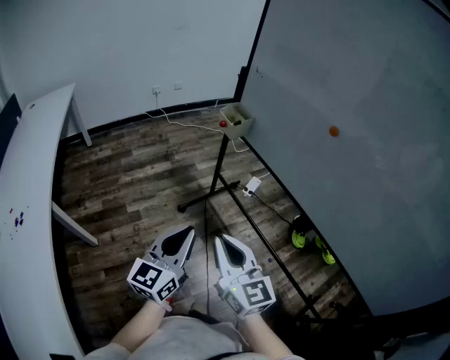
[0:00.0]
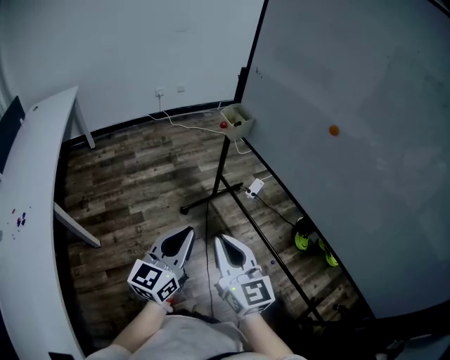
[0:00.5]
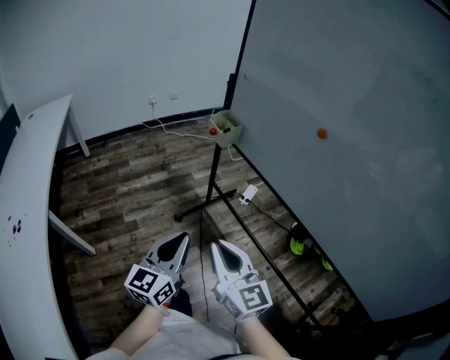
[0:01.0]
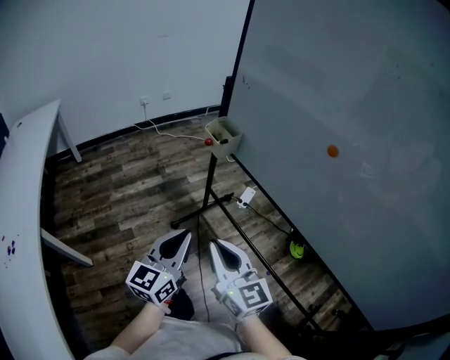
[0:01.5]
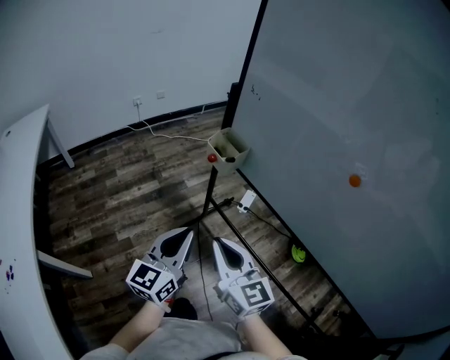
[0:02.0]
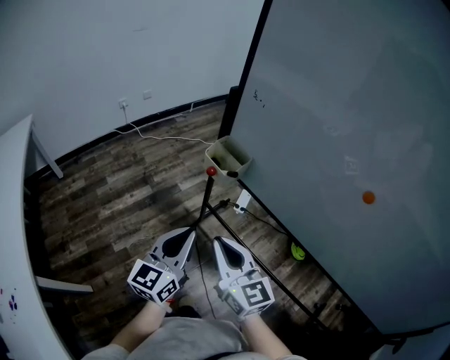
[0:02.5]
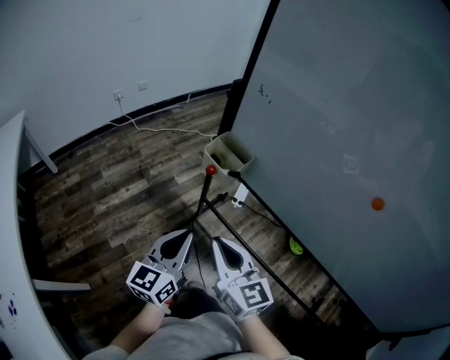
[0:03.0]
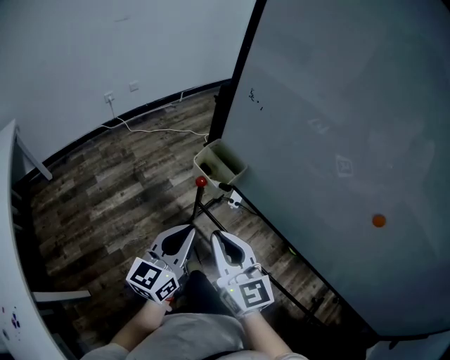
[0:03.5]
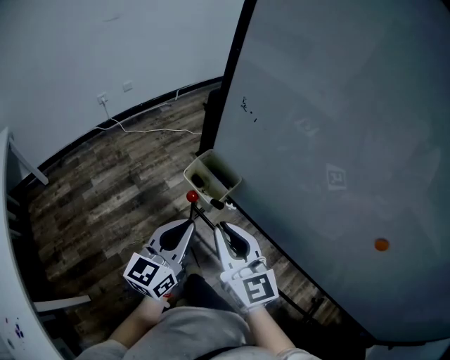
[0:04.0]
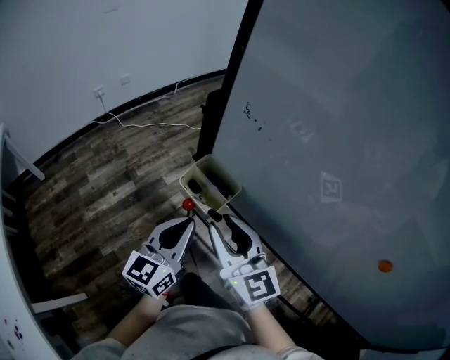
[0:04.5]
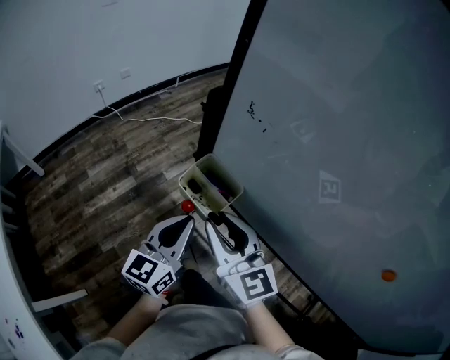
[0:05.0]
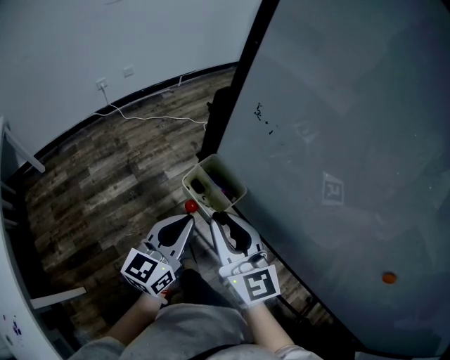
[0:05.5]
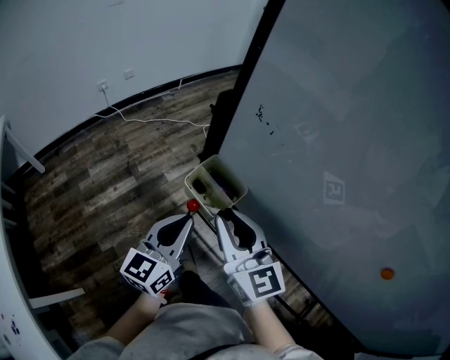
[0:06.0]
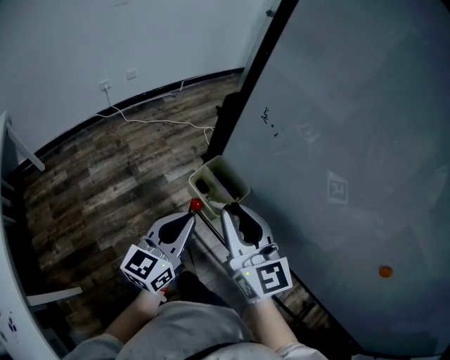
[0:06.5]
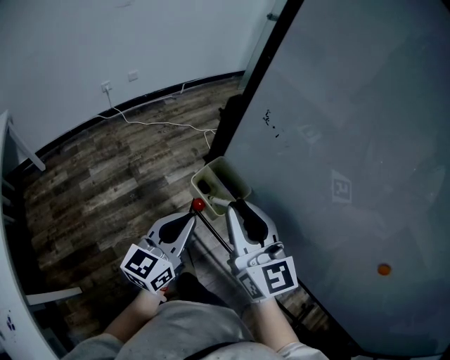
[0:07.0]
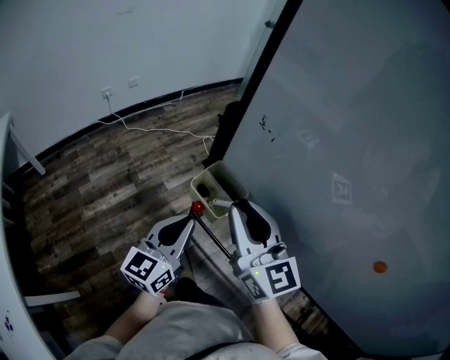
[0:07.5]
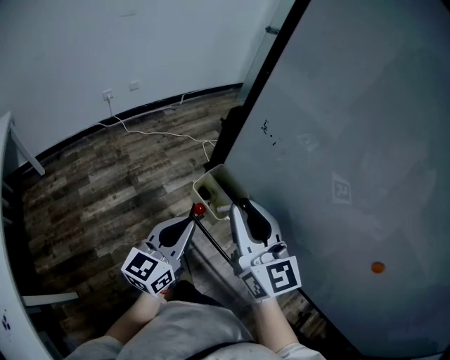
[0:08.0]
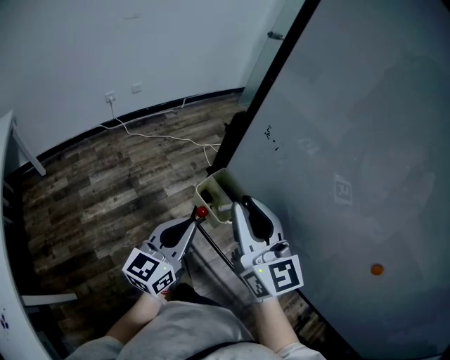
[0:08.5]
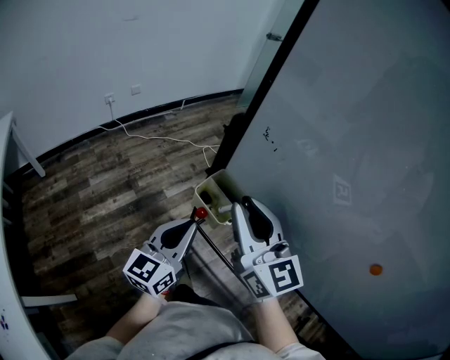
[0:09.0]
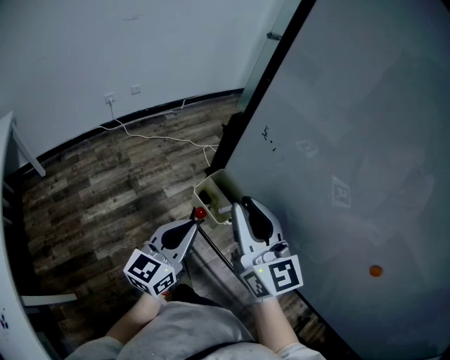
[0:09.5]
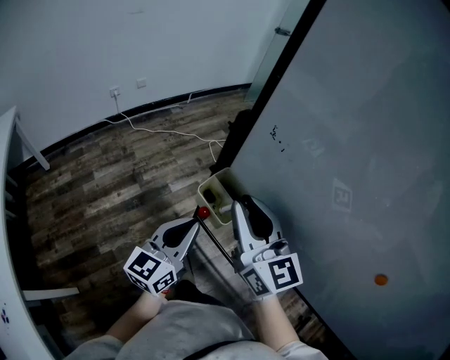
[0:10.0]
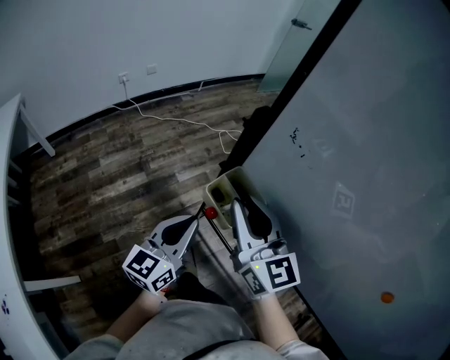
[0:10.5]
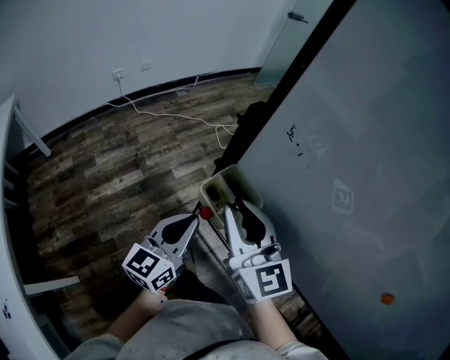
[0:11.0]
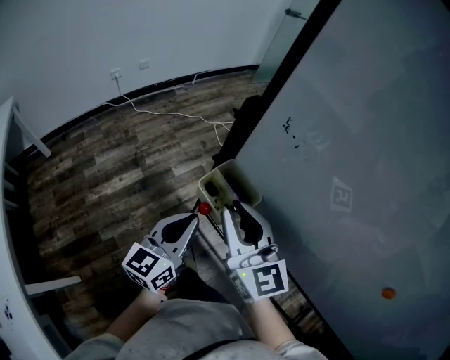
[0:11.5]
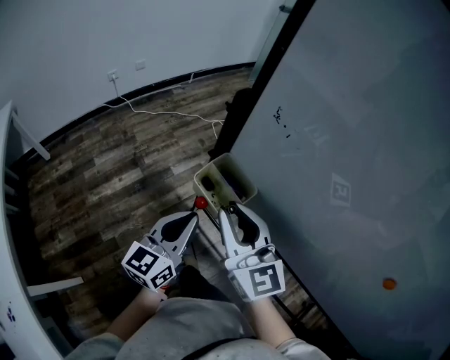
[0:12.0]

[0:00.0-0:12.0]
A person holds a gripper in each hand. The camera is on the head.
0:00.0 to 0:02.0: Both grippers move forward, some 20 cm.
0:02.0 to 0:04.0: Both grippers travel together forward, about 20 cm.
0:04.0 to 0:06.0: The right gripper shifts about 5 cm forward.
0:06.0 to 0:08.0: The right gripper moves upward, approximately 5 cm.
0:08.0 to 0:10.0: There are only small adjustments of the grippers.
0:10.0 to 0:12.0: The right gripper moves downward, some 5 cm.

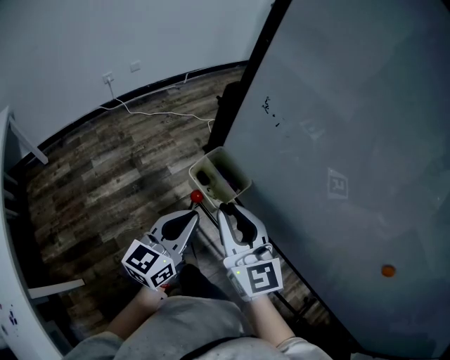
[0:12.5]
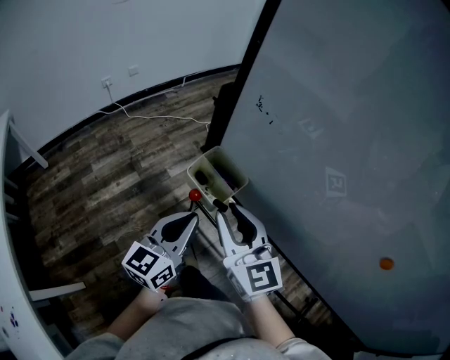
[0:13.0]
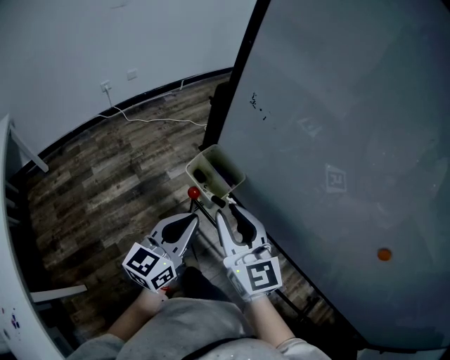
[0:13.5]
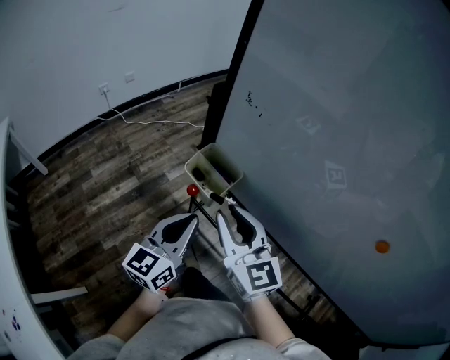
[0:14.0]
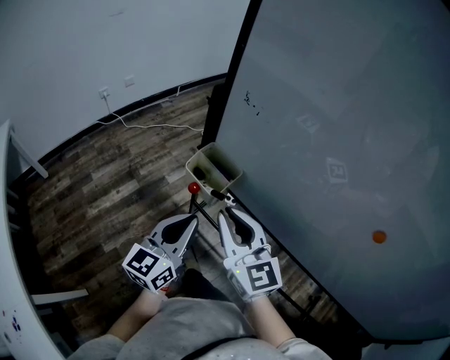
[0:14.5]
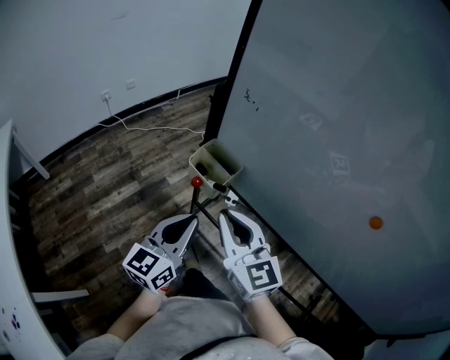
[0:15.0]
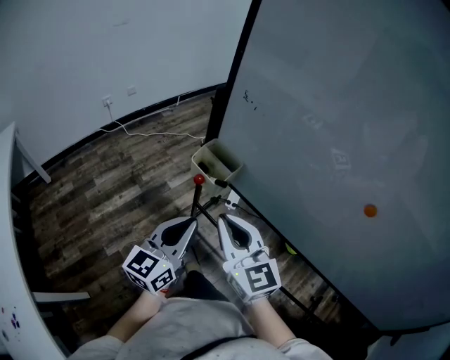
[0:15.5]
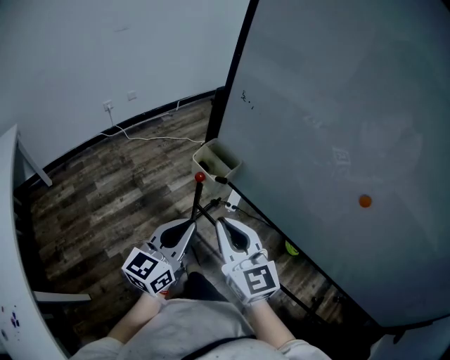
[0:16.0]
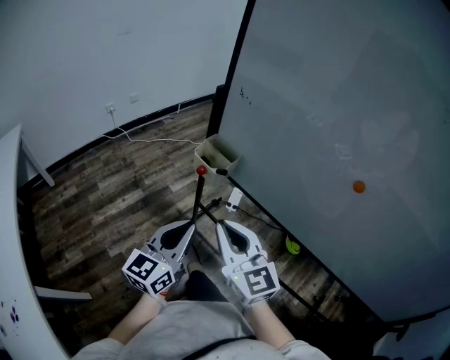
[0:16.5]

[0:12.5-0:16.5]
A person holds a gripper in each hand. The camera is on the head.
0:12.5 to 0:14.5: The right gripper moves roughly 5 cm. The left gripper shifts by roughly 5 cm.
0:14.5 to 0:16.5: Both grippers move backward, approximately 15 cm.

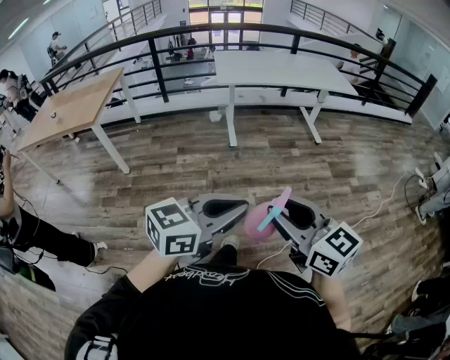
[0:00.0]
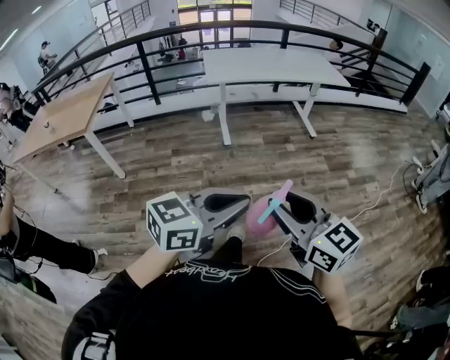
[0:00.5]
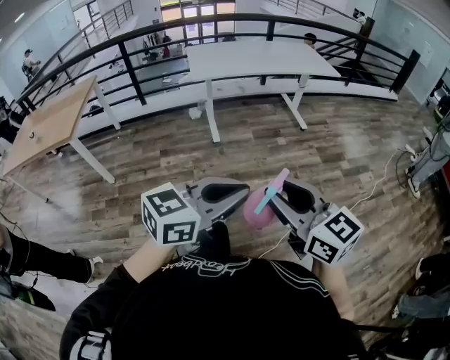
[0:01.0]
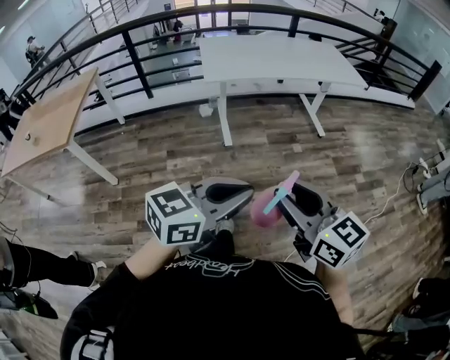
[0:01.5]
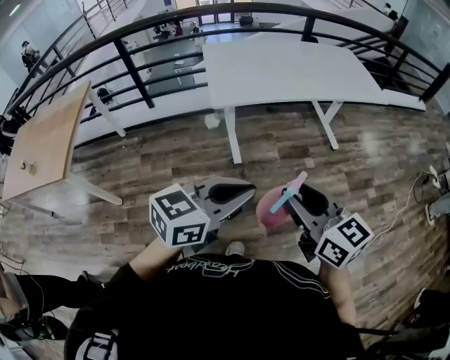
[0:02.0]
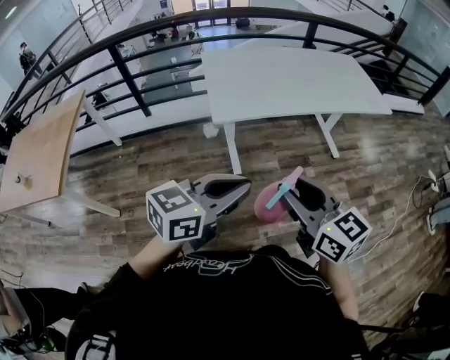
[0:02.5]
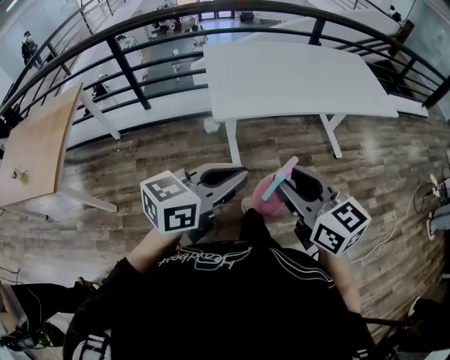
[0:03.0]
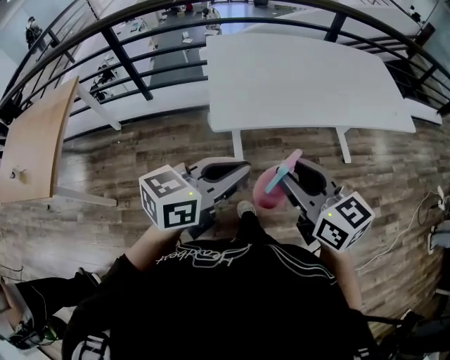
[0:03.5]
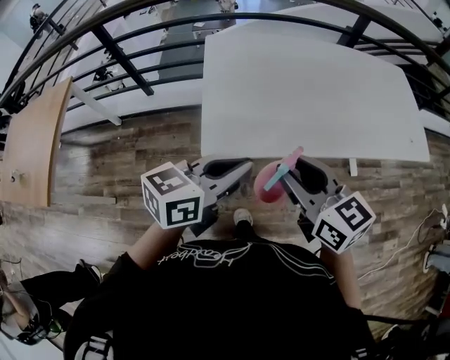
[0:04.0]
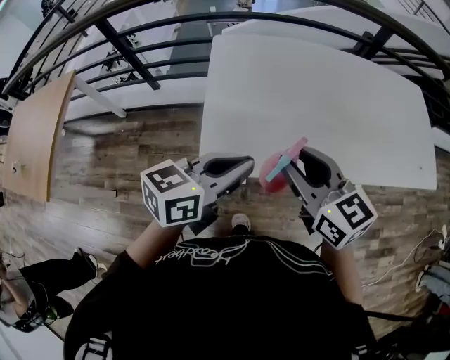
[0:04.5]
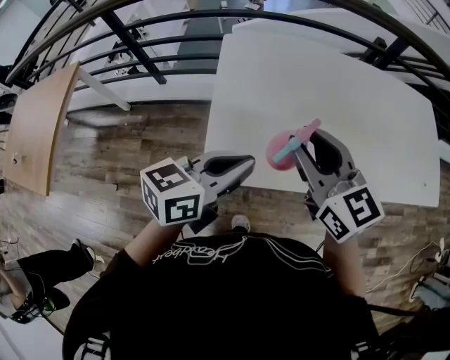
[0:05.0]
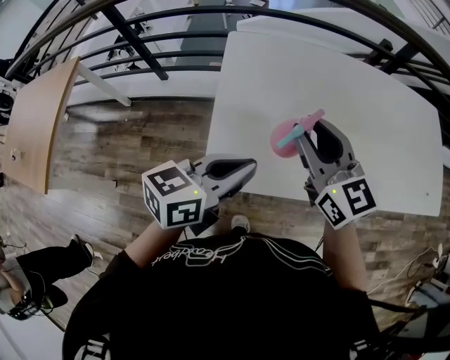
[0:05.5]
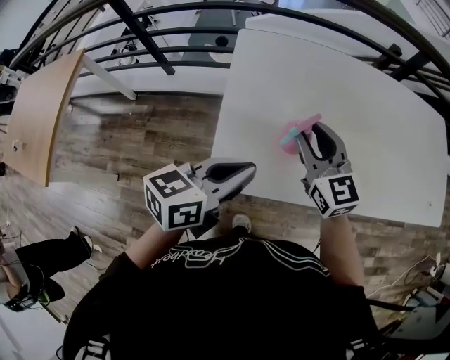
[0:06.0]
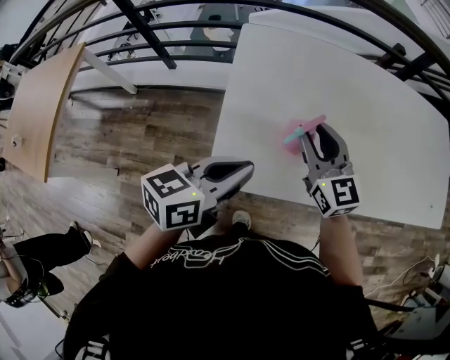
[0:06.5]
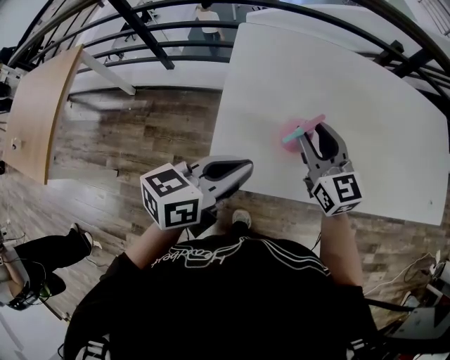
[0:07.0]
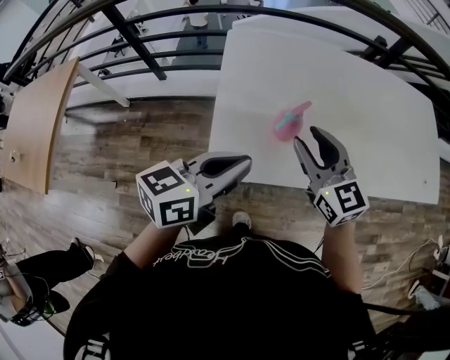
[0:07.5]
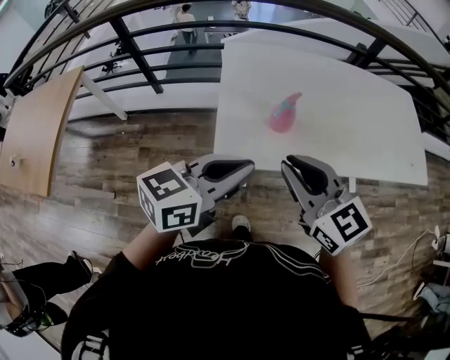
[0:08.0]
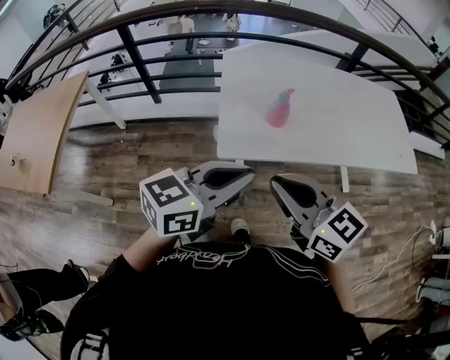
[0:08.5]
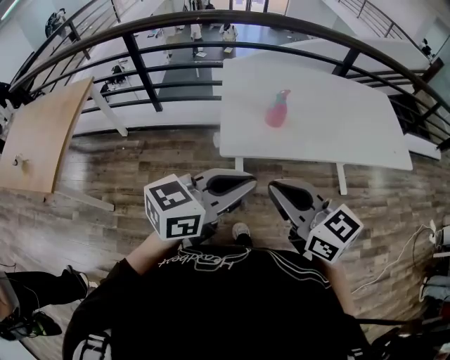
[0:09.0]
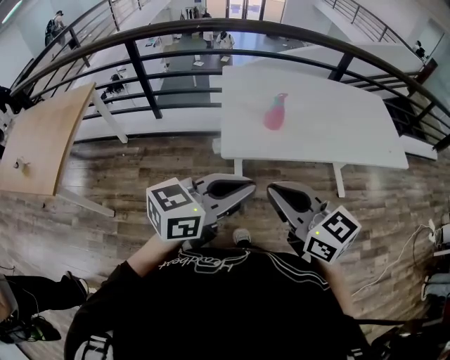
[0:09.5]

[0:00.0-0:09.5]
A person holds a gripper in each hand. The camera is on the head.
0:00.0 to 0:02.0: The two grippers travel together, forward, about 60 cm.
0:02.0 to 0:04.0: Both grippers are carried forward, some 50 cm.
0:04.0 to 0:05.5: The right gripper moves forward, roughly 20 cm. Meanwhile the left gripper shifts some 15 cm forward.
0:07.5 to 0:09.5: The right gripper moves backward, some 35 cm, and closes. The left gripper heads backward and upward, covering approximately 30 cm.

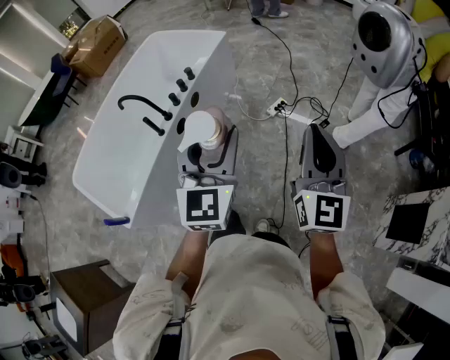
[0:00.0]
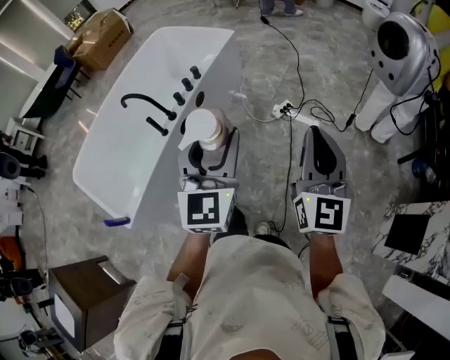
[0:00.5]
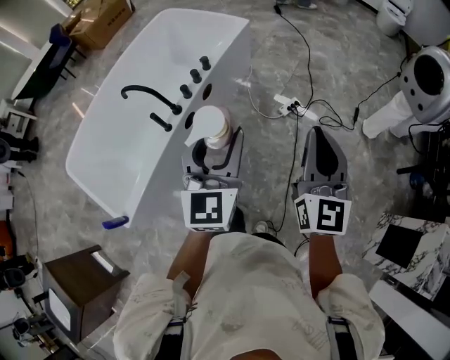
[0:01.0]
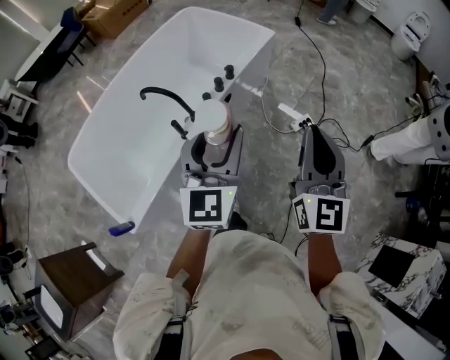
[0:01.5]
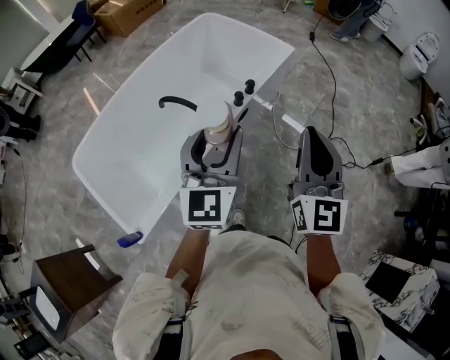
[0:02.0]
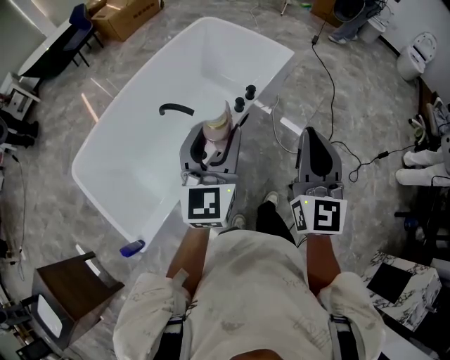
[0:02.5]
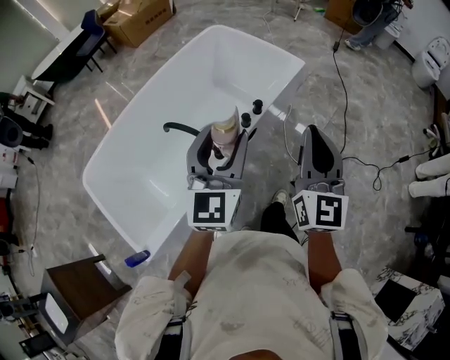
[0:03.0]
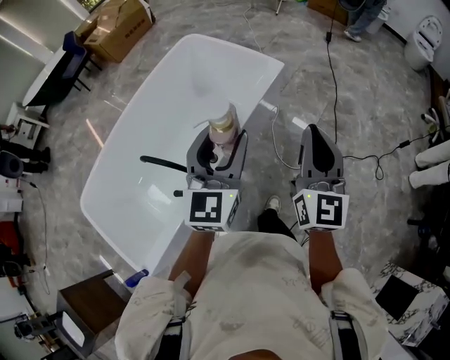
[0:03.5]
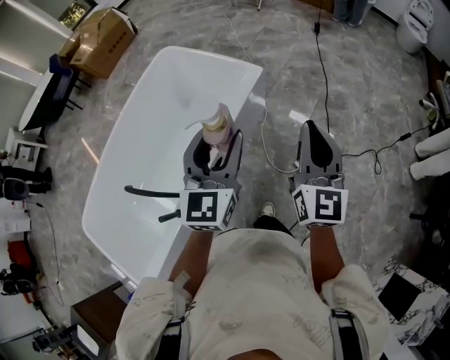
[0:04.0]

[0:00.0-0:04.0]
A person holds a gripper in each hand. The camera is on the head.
0:00.0 to 0:02.0: The grippers both shift to the left and forward by roughly 40 cm.
0:02.0 to 0:04.0: Both grippers move forward and to the right, some 40 cm.
